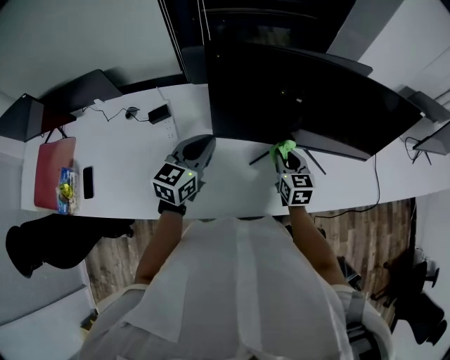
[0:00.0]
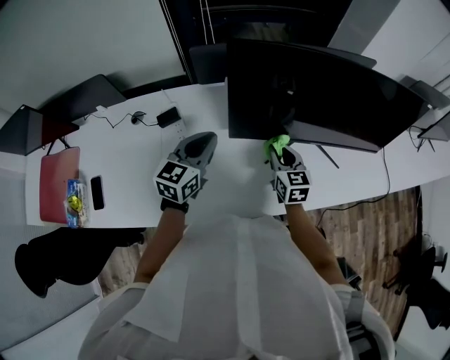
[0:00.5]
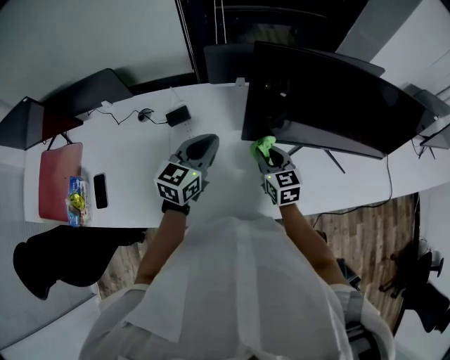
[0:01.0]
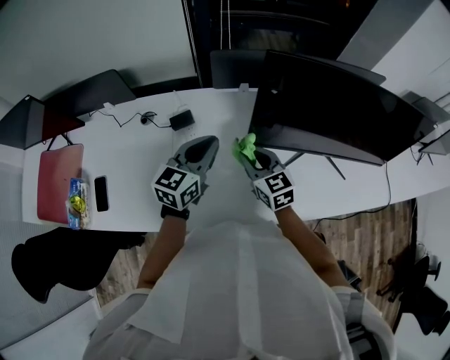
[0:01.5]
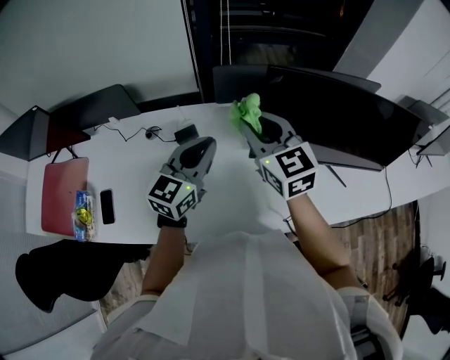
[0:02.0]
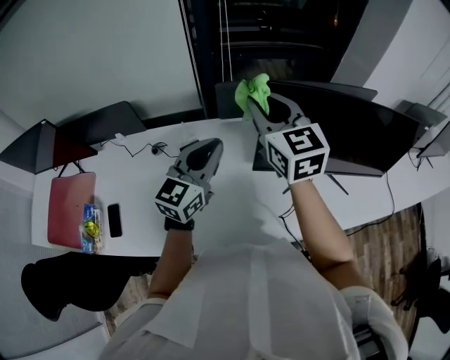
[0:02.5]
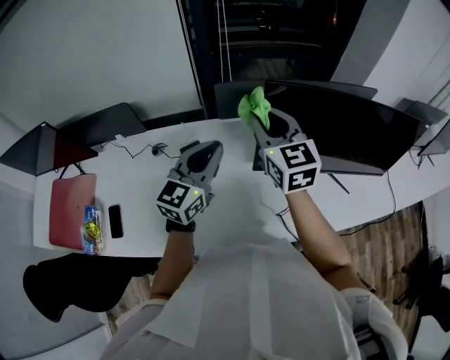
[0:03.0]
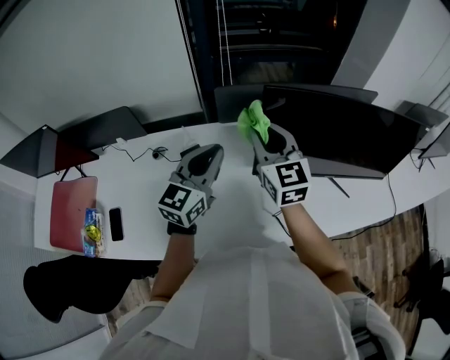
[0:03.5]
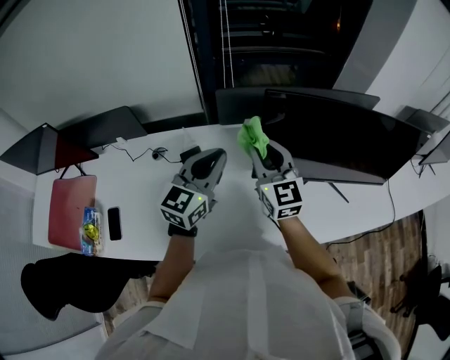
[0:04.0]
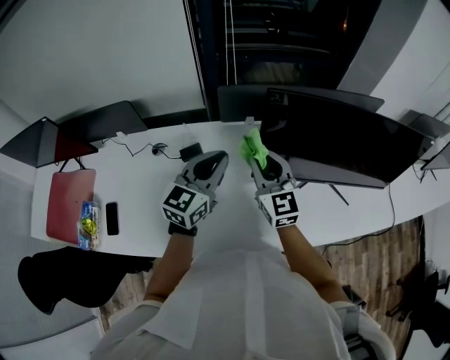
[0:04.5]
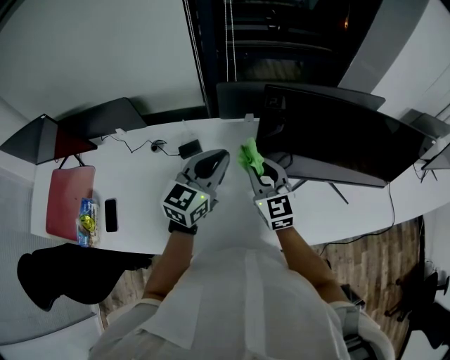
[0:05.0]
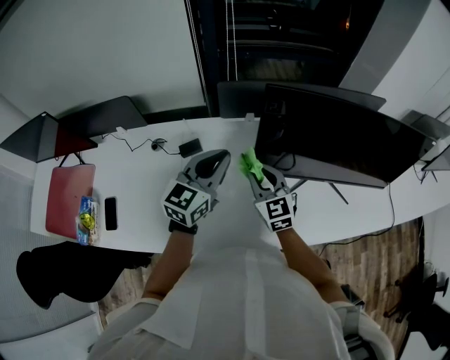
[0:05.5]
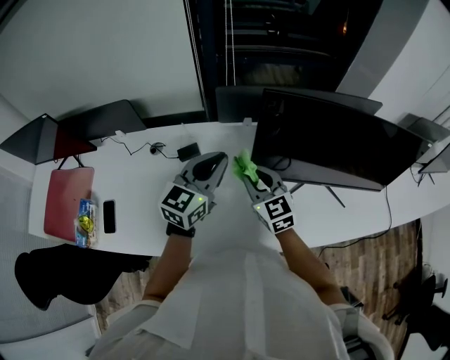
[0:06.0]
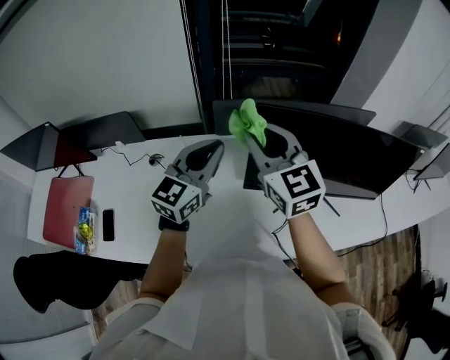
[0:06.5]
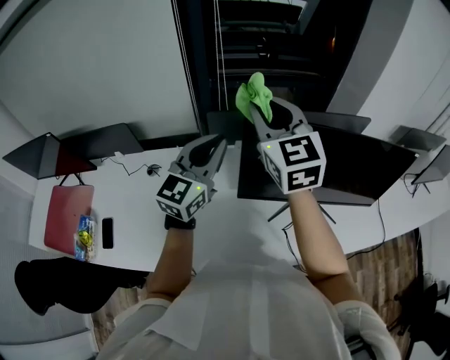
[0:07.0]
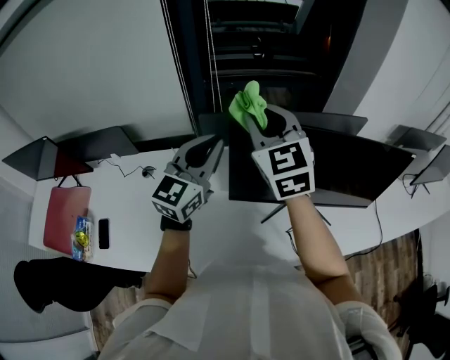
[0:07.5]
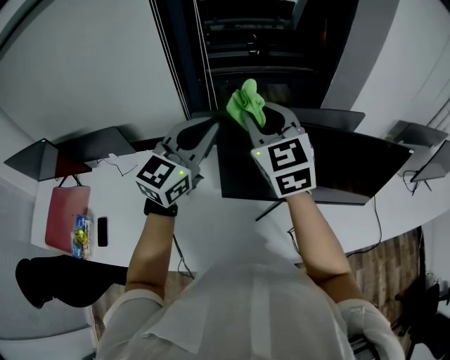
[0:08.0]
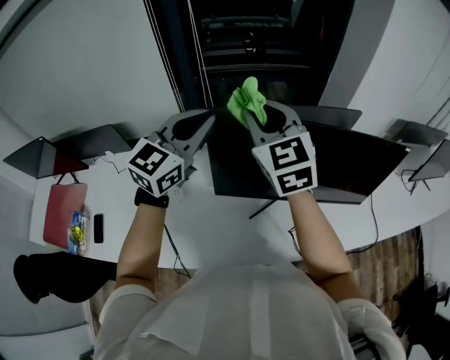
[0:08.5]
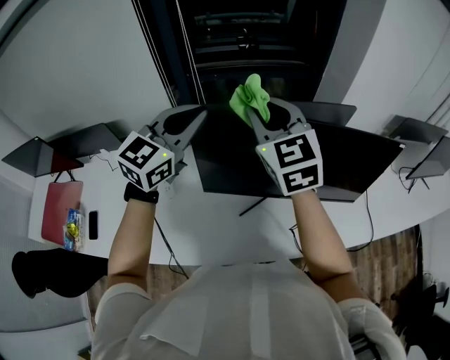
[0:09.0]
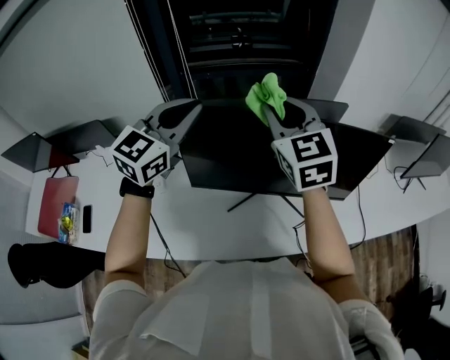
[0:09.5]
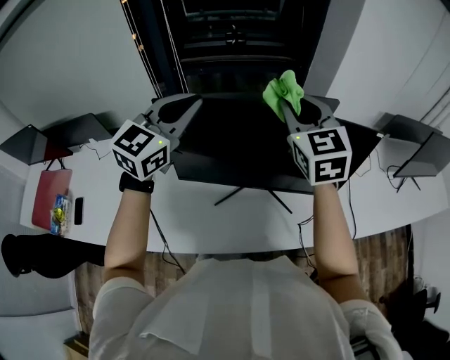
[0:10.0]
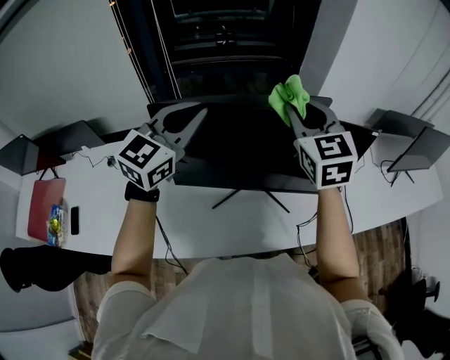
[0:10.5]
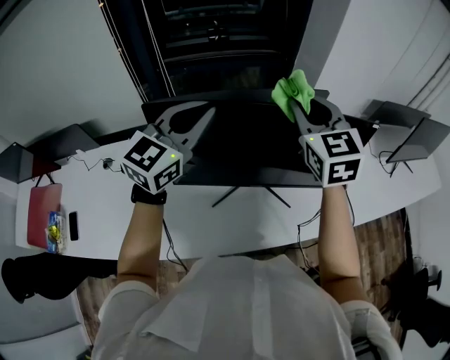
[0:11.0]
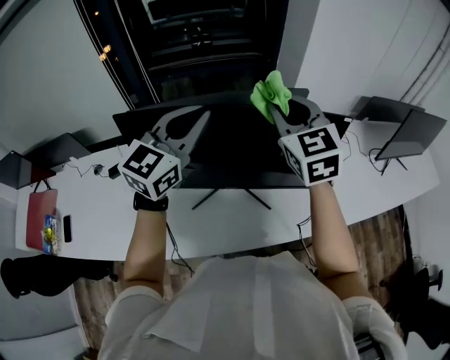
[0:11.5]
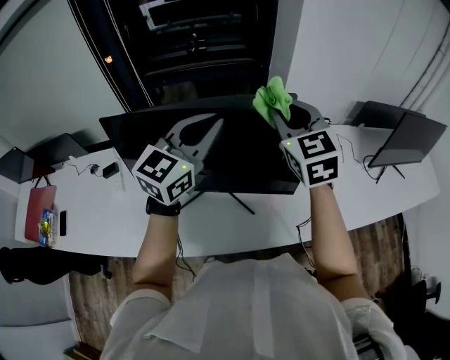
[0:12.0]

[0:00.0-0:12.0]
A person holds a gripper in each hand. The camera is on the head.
0:00.0 to 0:02.0: The left gripper is displaced to the left and upward by some 15 cm. The right gripper heads to the left and upward, covering approximately 35 cm, and turns by about 30 degrees.
0:02.0 to 0:04.0: The right gripper travels upward and back again, approximately 10 cm each way.
0:04.0 to 0:06.0: The right gripper shifts approximately 10 cm downward.
0:06.0 to 0:08.0: The left gripper goes some 20 cm upward and to the right, while the right gripper heads upward, covering approximately 25 cm.
0:08.0 to 0:10.0: The right gripper moves to the right, some 25 cm. The left gripper moves to the right, some 15 cm.
0:10.0 to 0:12.0: The two grippers go roughly 20 cm to the right.

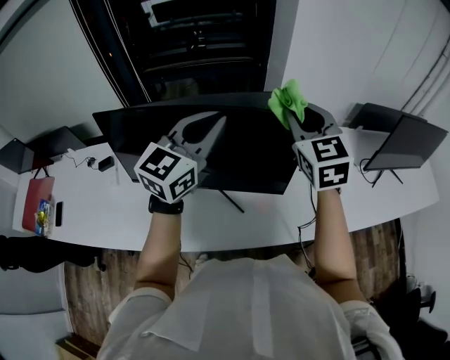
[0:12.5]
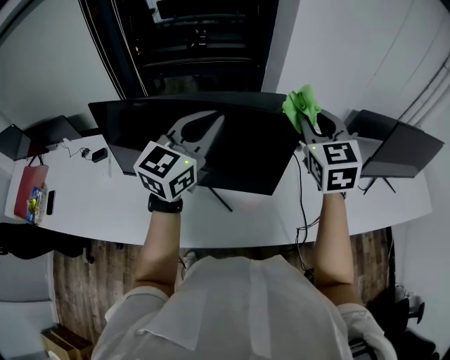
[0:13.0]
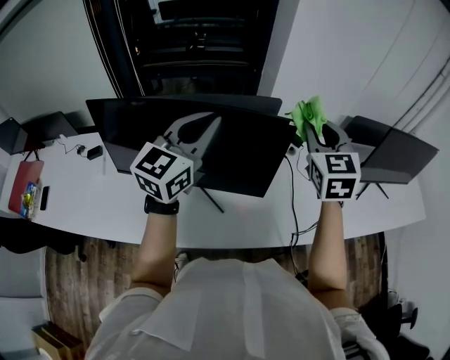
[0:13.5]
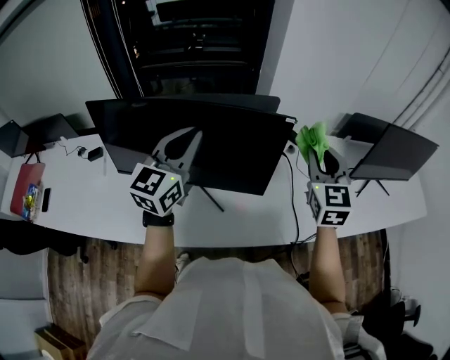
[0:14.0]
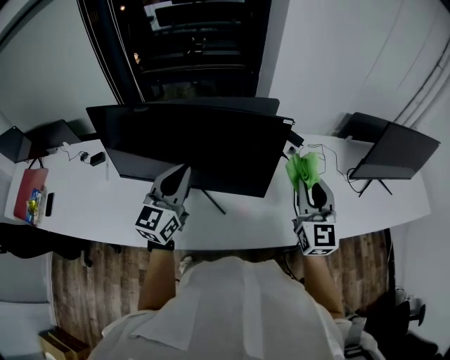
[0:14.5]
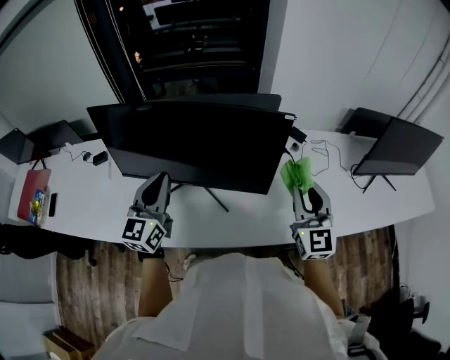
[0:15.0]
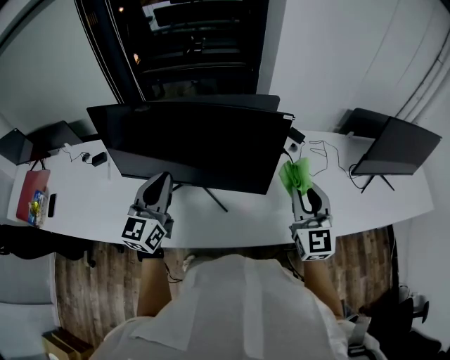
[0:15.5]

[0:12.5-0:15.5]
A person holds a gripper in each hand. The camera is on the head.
0:12.5 to 0:14.0: The right gripper is displaced to the right by some 15 cm.
0:14.0 to 0:15.5: The left gripper heads downward, backward and to the left, covering some 15 cm. The right gripper travels backward and downward by about 10 cm.

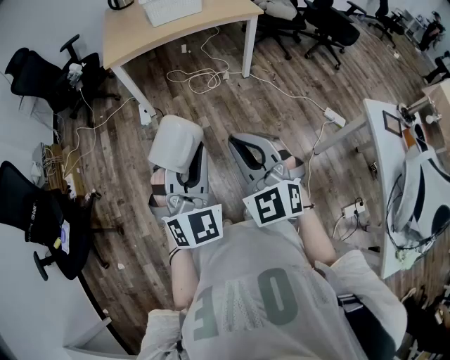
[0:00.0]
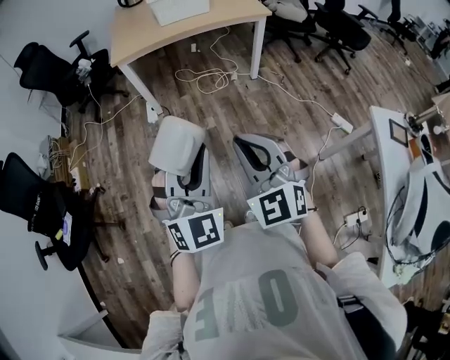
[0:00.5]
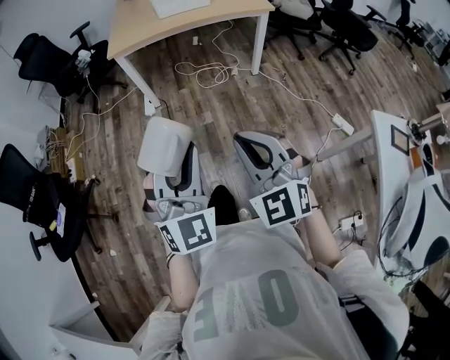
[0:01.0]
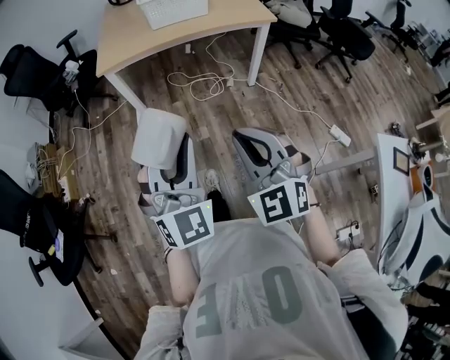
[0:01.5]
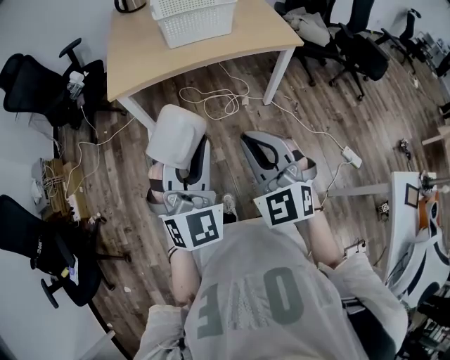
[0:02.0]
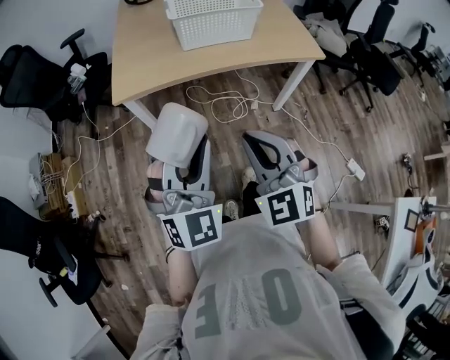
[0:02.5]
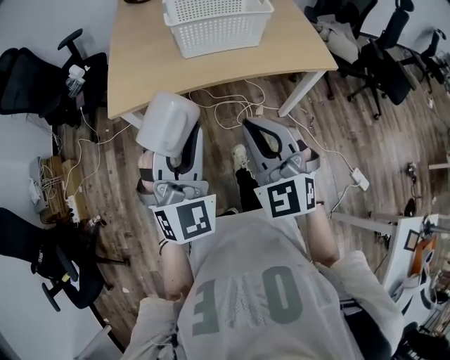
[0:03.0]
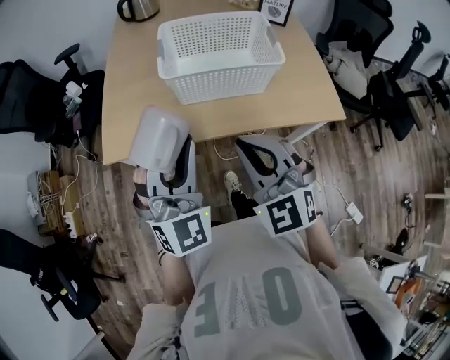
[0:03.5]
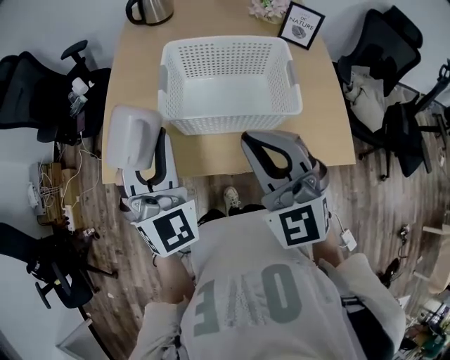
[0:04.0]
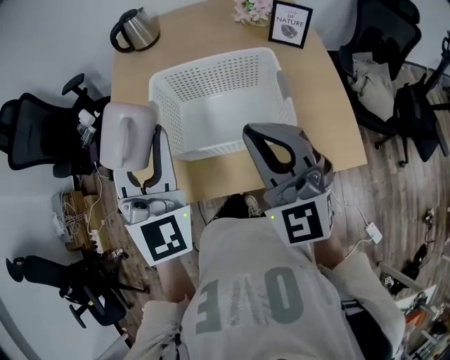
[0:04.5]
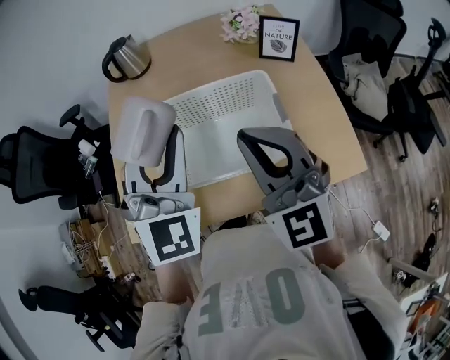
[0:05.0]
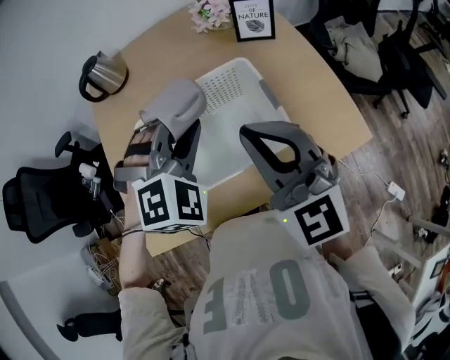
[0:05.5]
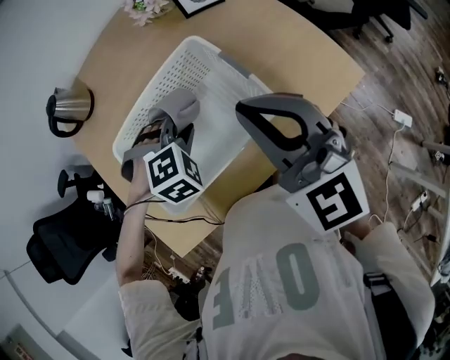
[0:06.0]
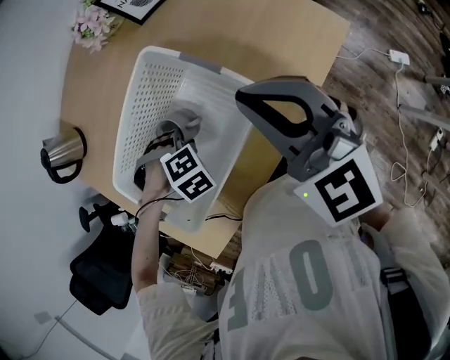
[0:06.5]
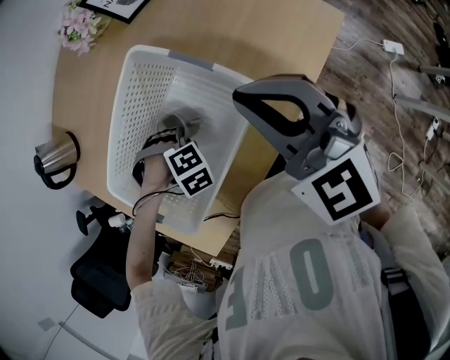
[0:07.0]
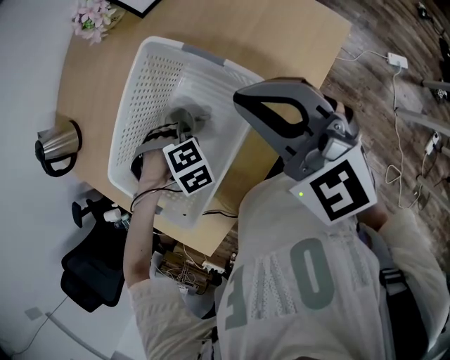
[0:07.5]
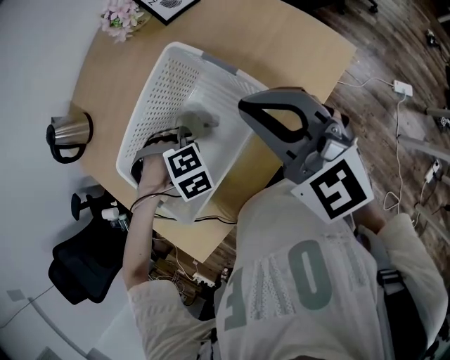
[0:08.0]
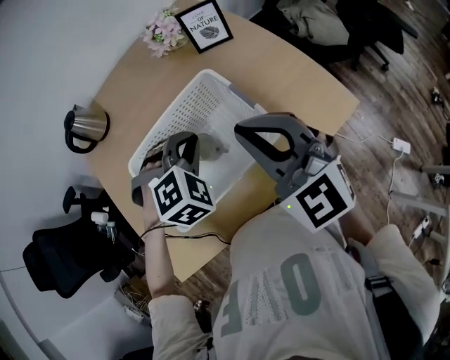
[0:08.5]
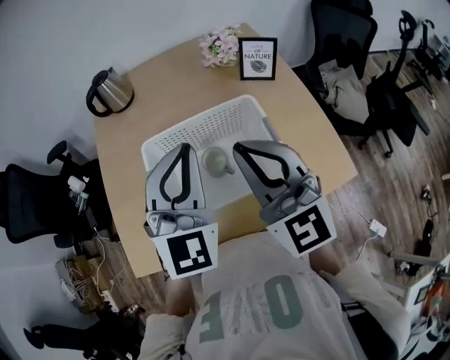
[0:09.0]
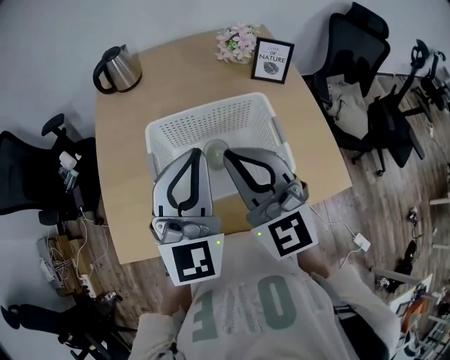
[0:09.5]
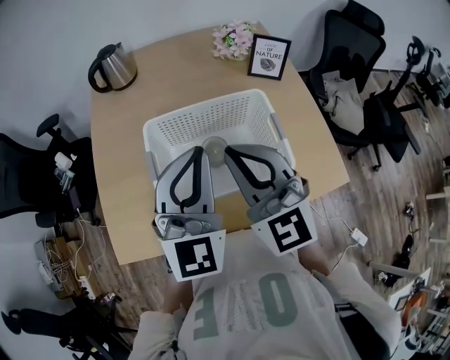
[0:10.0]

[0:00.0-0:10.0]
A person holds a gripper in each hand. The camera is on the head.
0:00.0 to 0:02.0: Both grippers move forward, some 35 cm.
0:02.0 to 0:04.0: The two grippers travel together, forward, approximately 50 cm. The left gripper changes its angle by about 30 degrees, while the right gripper turns by some 20 degrees.
0:04.0 to 0:06.0: The right gripper changes place by some 15 cm, and swivels about 40 degrees. Meanwhile the left gripper moves some 30 cm, and tips its fingers downward by approximately 60 degrees.
0:06.0 to 0:08.0: The left gripper is displaced downward by about 5 cm, and rotates approximately 20 degrees.
0:08.0 to 0:10.0: The left gripper moves upward, some 30 cm, and points its fingers about 80 degrees further upward. Meanwhile the right gripper shifts by some 15 cm, and rotates approximately 20 degrees.

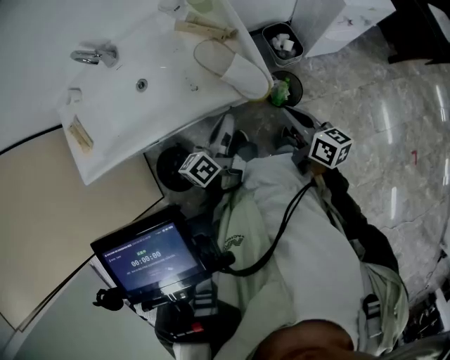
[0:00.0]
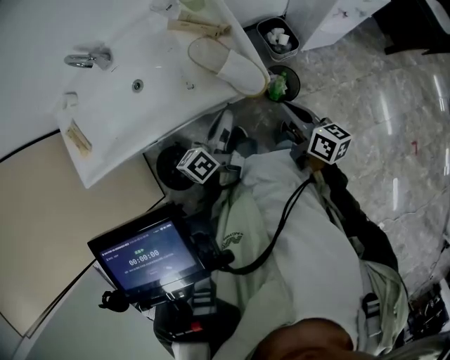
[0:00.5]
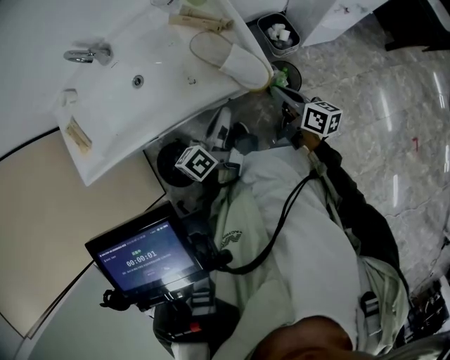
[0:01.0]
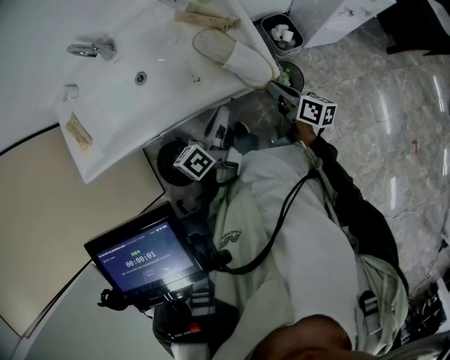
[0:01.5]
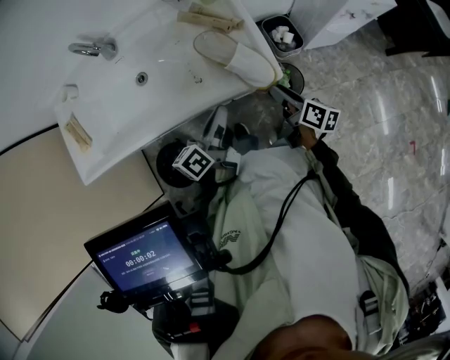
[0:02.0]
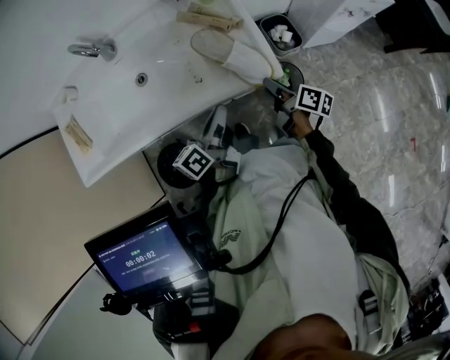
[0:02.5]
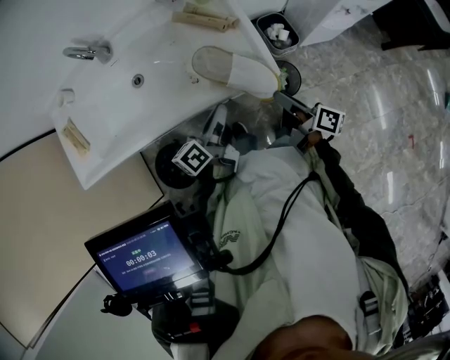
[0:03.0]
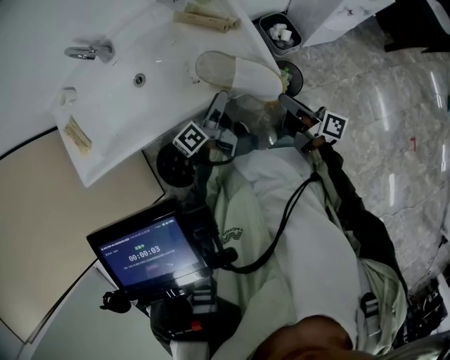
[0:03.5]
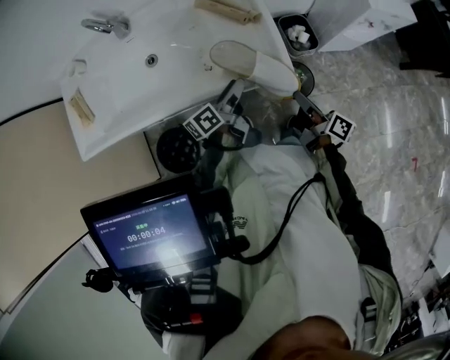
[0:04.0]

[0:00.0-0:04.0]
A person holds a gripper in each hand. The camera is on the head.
0:00.0 to 0:02.0: The right gripper shifts approximately 10 cm downward, and opens up.
0:02.0 to 0:04.0: The right gripper closes.
